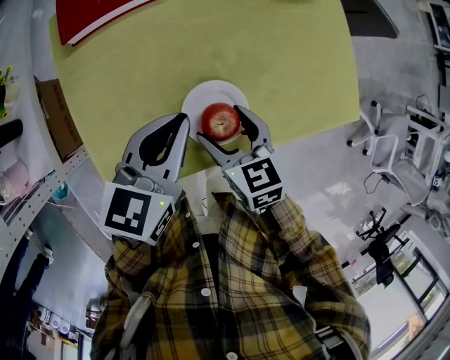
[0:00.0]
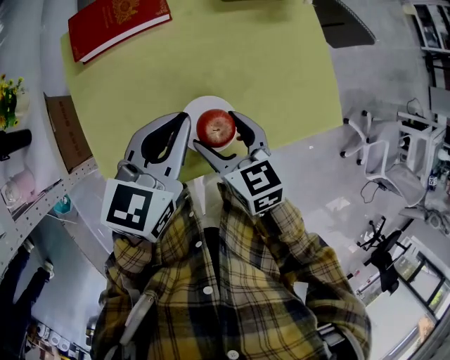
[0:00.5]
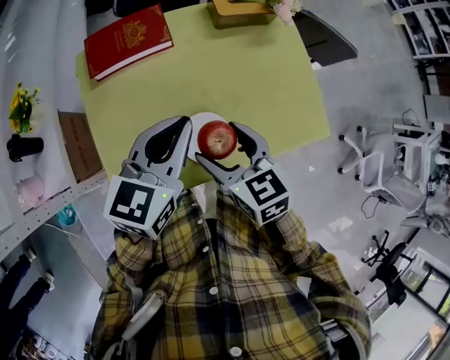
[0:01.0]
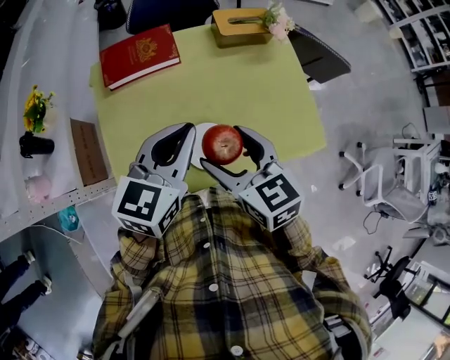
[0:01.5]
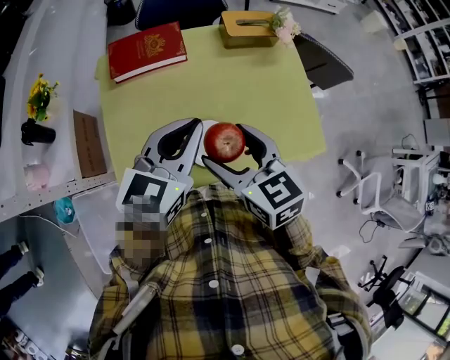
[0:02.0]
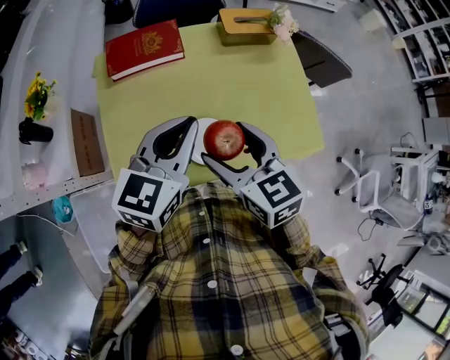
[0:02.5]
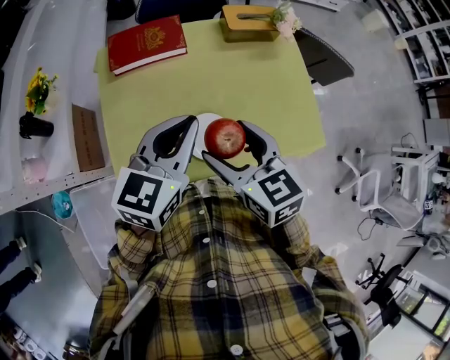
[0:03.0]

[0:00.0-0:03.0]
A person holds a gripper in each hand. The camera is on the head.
0:00.0 to 0:01.5: Both grippers move upward, roughly 20 cm.
0:01.5 to 0:03.0: There are only small adjustments of the grippers.

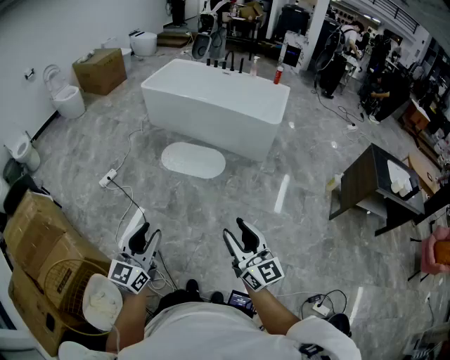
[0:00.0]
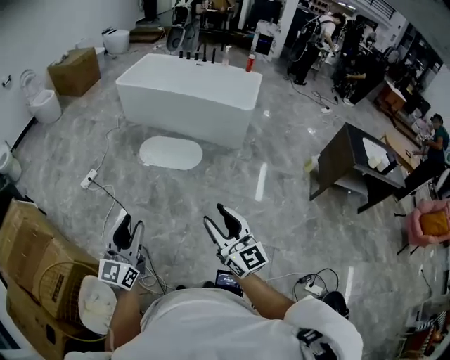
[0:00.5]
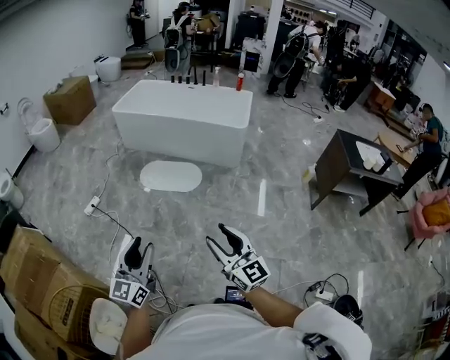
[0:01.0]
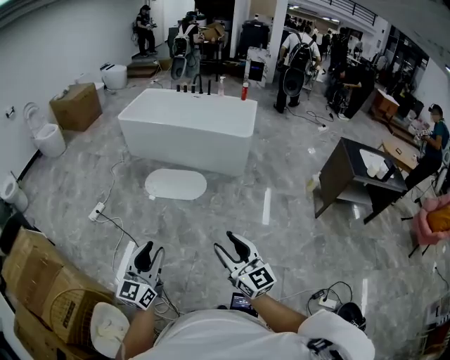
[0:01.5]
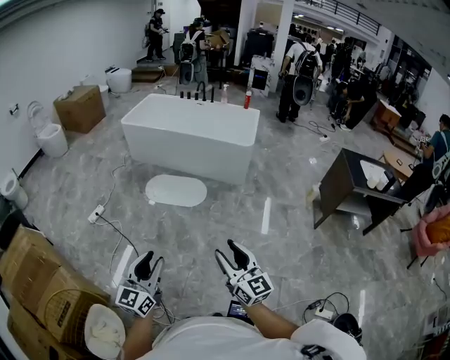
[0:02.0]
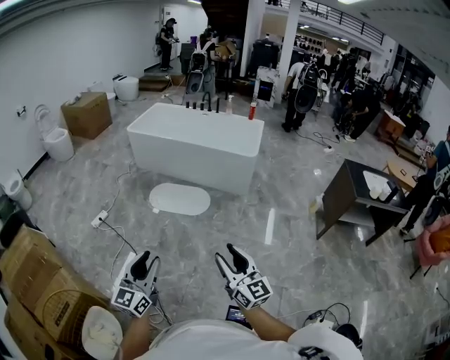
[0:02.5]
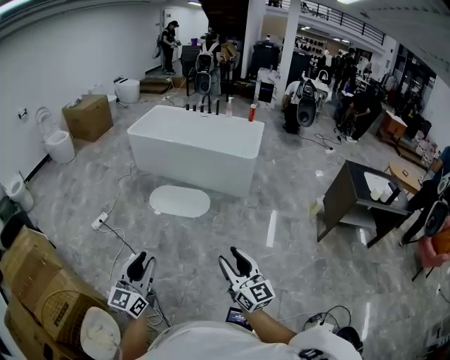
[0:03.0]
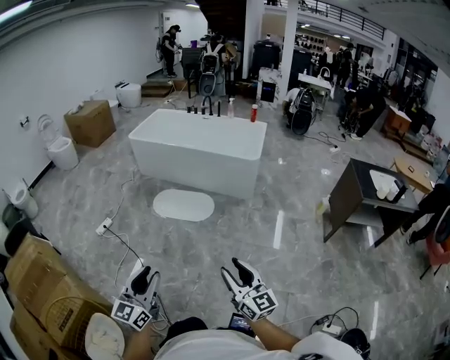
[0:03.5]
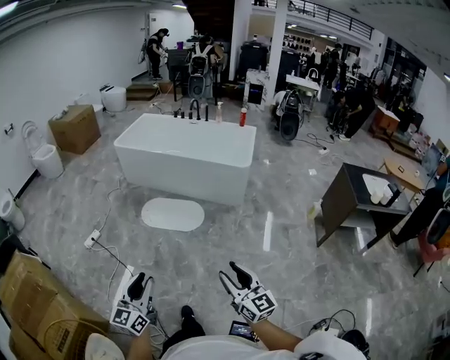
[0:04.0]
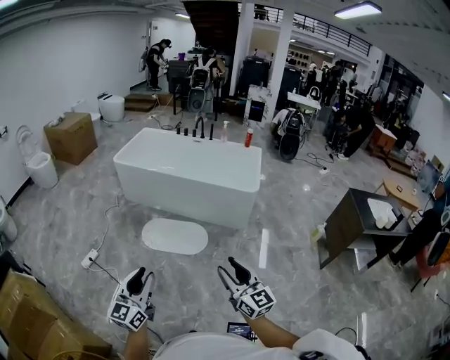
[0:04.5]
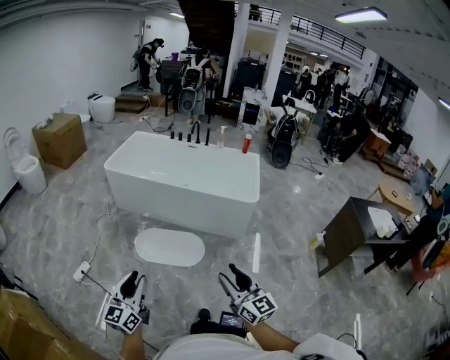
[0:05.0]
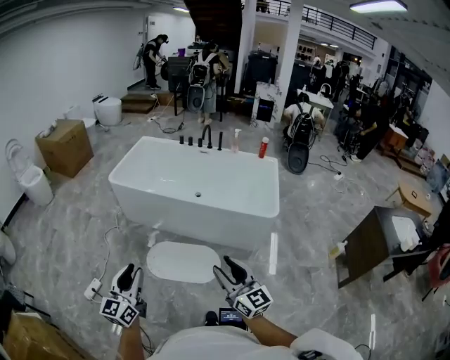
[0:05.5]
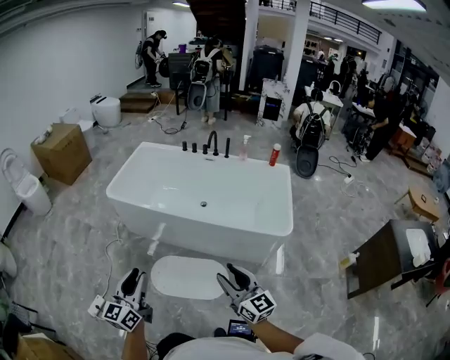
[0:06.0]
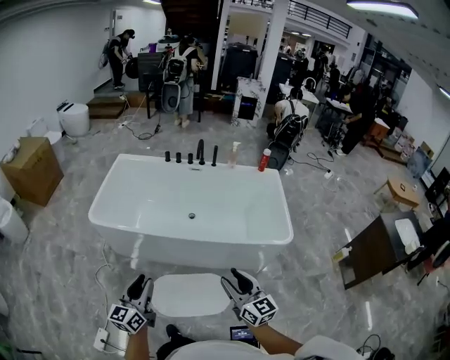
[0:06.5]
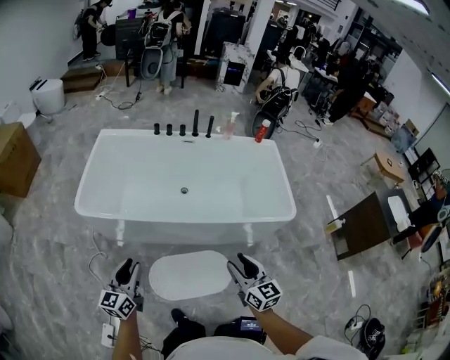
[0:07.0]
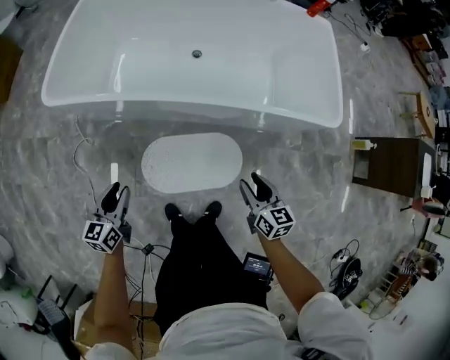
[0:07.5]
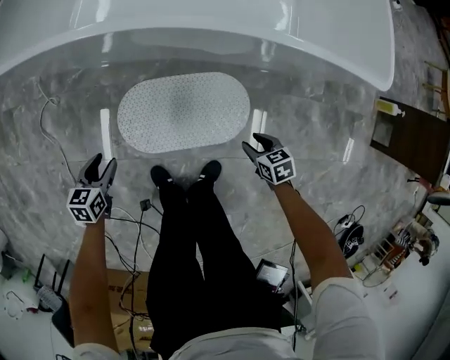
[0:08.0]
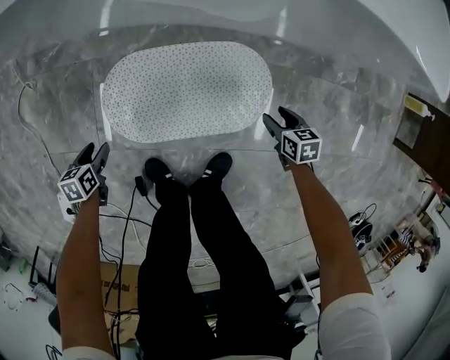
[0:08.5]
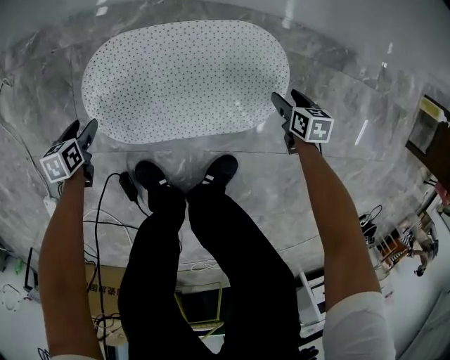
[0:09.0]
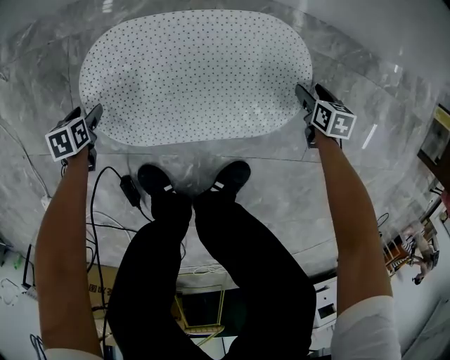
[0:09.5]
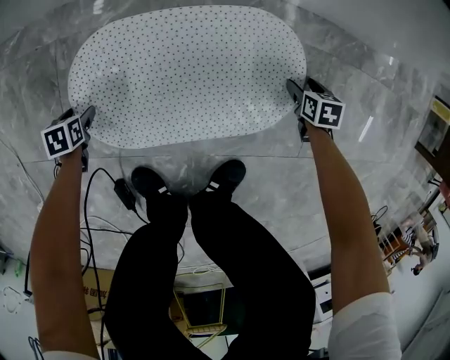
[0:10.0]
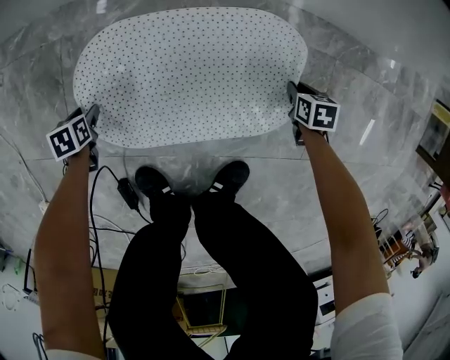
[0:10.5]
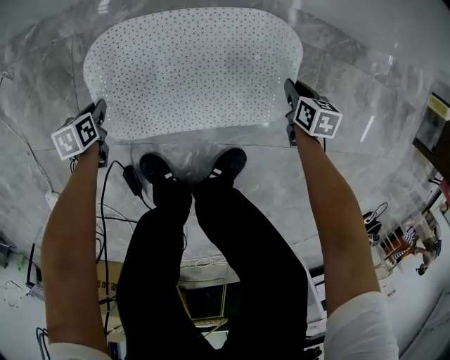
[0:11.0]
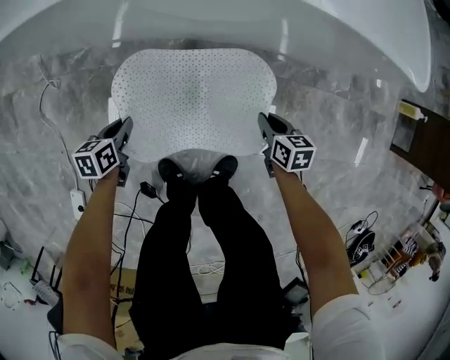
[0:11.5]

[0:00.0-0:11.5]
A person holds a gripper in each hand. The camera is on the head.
0:00.0 to 0:02.0: There are only small adjustments of the grippers.
0:02.0 to 0:04.0: The grippers both shift forward by some 10 cm.
0:04.0 to 0:06.0: The two grippers travel together, forward, some 70 cm.
0:06.0 to 0:07.5: The left gripper travels downward, forward and to the left by about 50 cm, and rotates roughly 30 degrees; the right gripper travels downward and forward by some 40 cm, and tips its fingers downward by about 40 degrees.
0:07.5 to 0:09.5: Both grippers travel together downward, about 70 cm. The right gripper tips its fingers downward by approximately 40 degrees. The left gripper angles its fingers downward, by some 50 degrees, and opens up.
0:09.5 to 0:11.5: Both grippers travel together upward, about 30 cm. The left gripper changes its angle by approximately 30 degrees, and closes up; the right gripper closes its fingers.

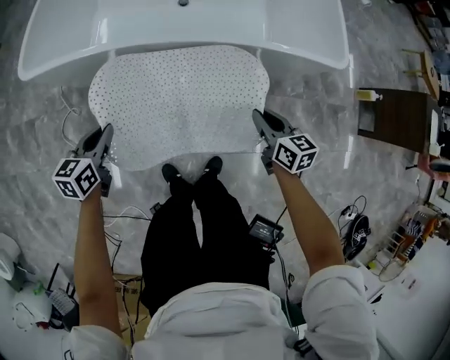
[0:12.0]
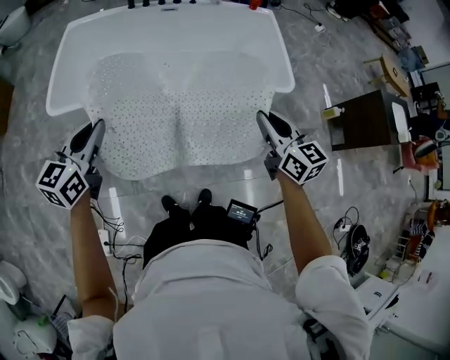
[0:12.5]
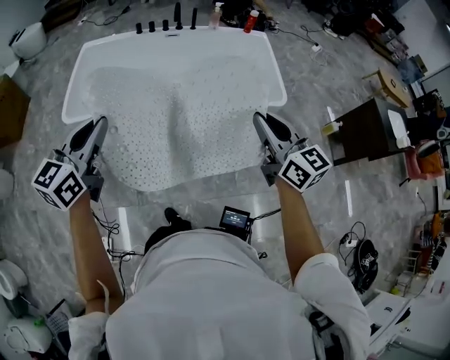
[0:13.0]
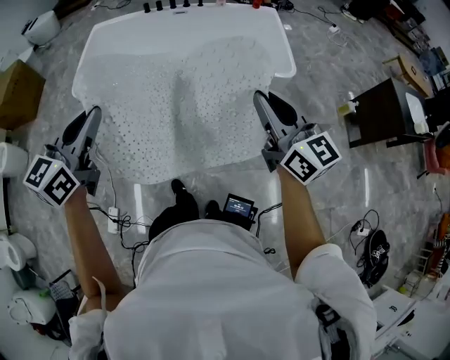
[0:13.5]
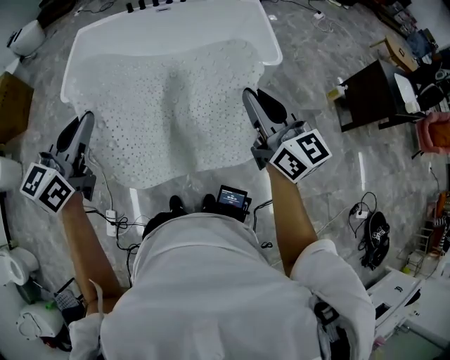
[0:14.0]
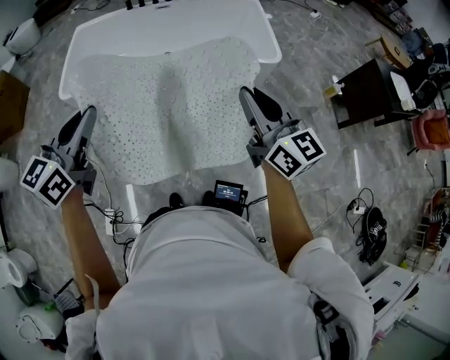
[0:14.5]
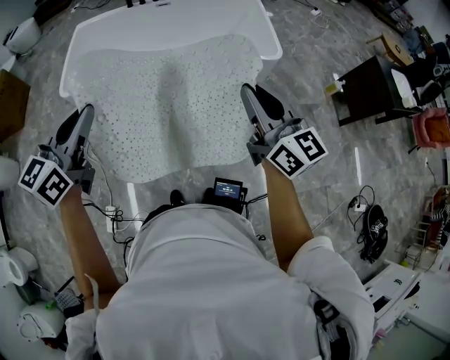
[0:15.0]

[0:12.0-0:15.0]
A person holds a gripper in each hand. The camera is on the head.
0:12.0 to 0:13.5: Both grippers move upward and backward, some 50 cm. The left gripper rotates some 30 degrees; the right gripper tilts its fingers some 40 degrees upward.
0:13.5 to 0:15.0: There are only small adjustments of the grippers.

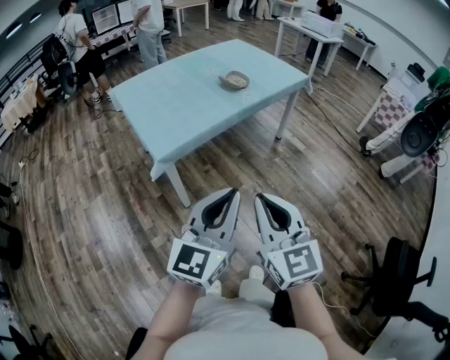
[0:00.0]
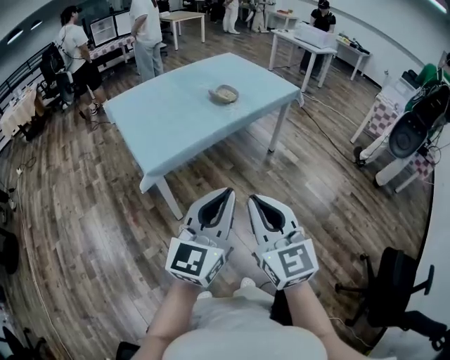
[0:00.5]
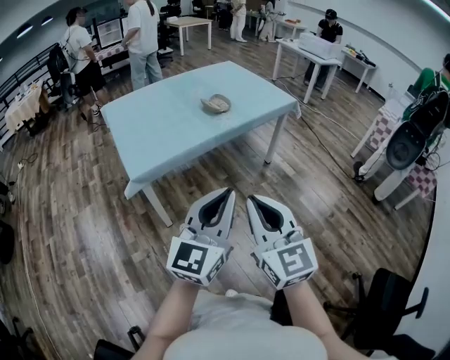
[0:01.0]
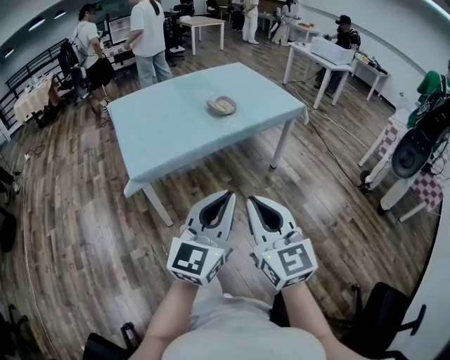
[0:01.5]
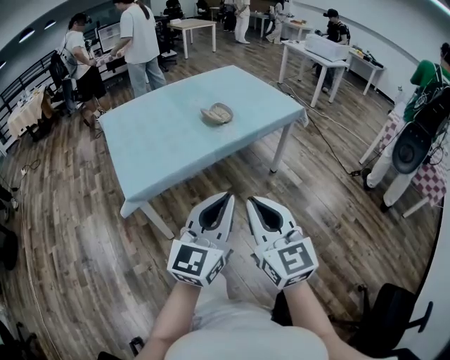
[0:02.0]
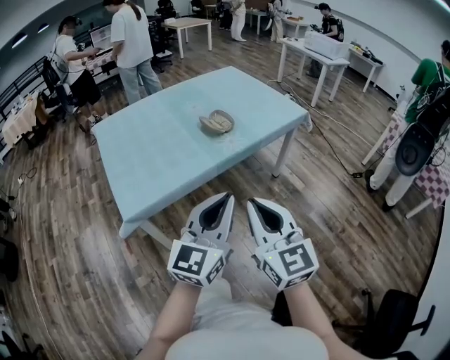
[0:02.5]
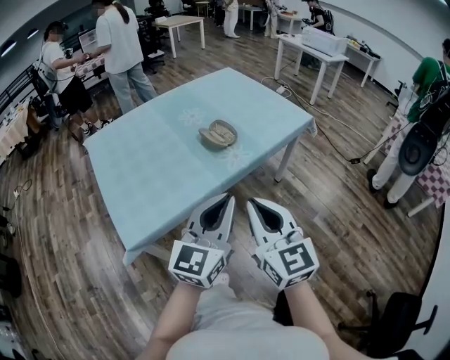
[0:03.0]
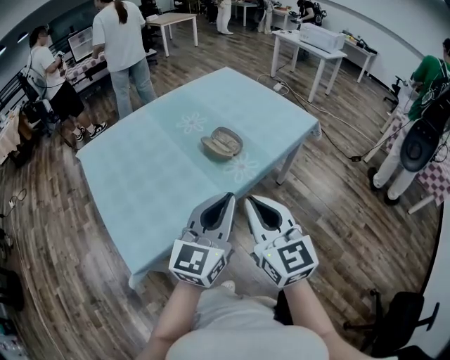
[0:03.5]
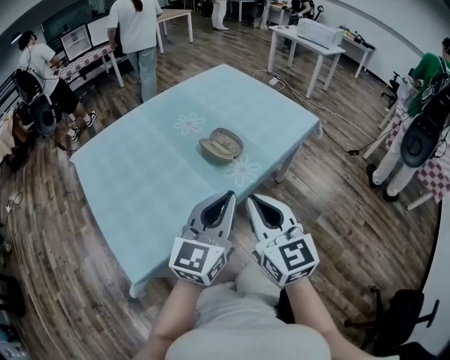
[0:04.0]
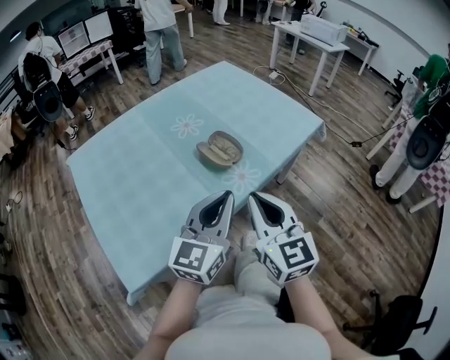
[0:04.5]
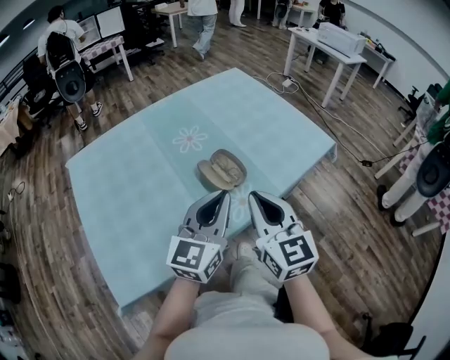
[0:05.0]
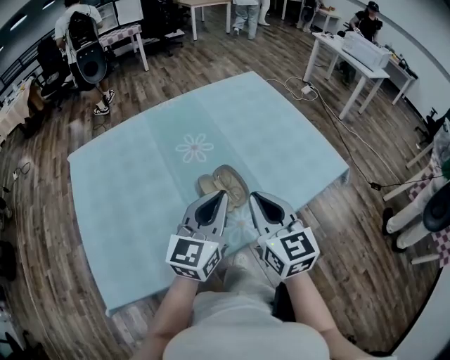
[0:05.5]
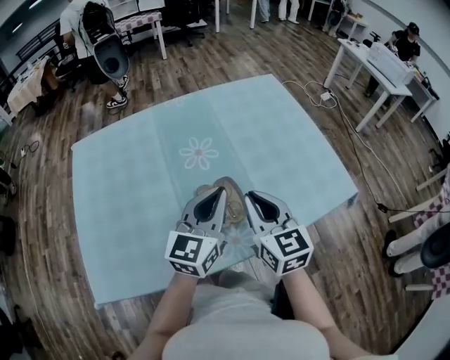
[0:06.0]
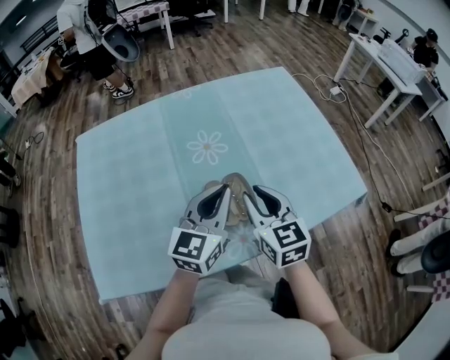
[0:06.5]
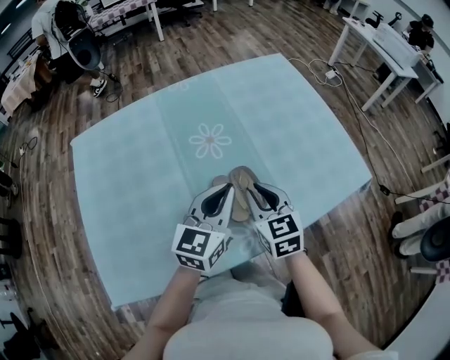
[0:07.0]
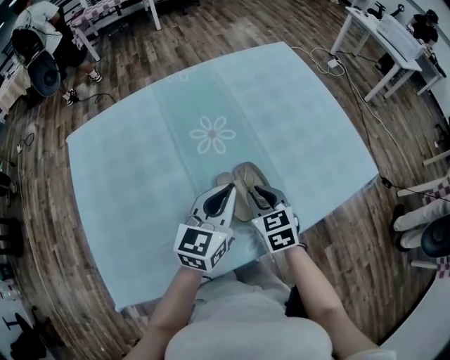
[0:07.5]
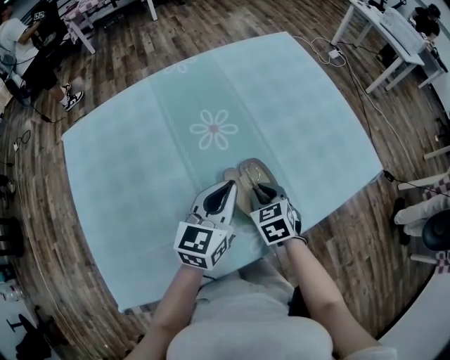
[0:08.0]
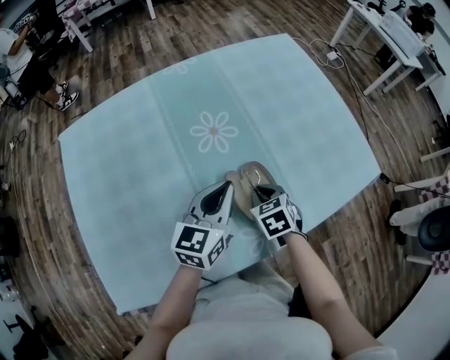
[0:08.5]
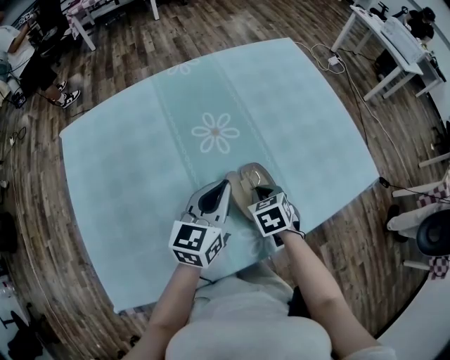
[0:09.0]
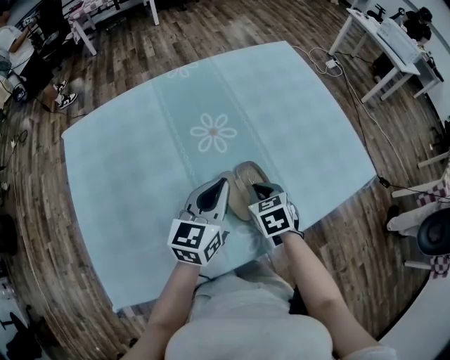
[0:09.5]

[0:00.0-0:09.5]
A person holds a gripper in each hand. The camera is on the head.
0:00.0 to 0:02.0: The grippers both shift forward and to the right by about 20 cm.
0:02.0 to 0:04.0: The grippers both shift forward by about 30 cm.
0:04.0 to 0:05.5: The two grippers go about 25 cm forward.
0:05.5 to 0:07.5: The left gripper heads forward and downward, covering approximately 10 cm, while the right gripper moves downward and forward, some 20 cm, and swivels about 30 degrees.
